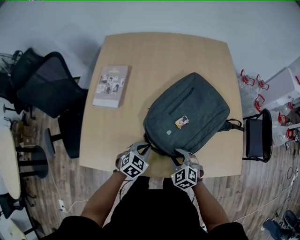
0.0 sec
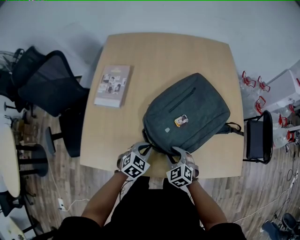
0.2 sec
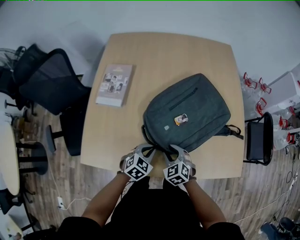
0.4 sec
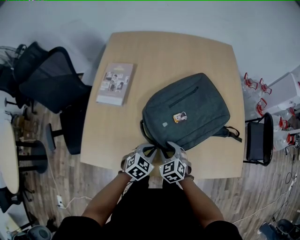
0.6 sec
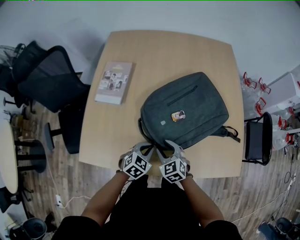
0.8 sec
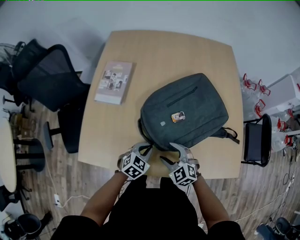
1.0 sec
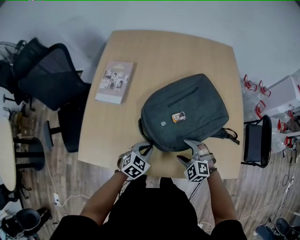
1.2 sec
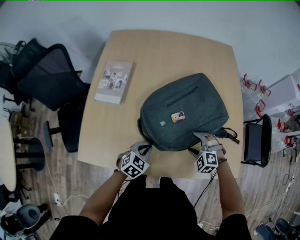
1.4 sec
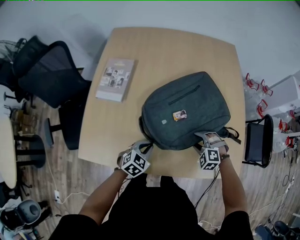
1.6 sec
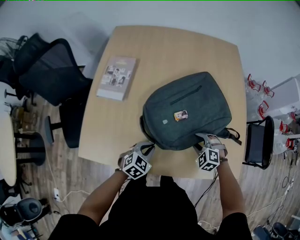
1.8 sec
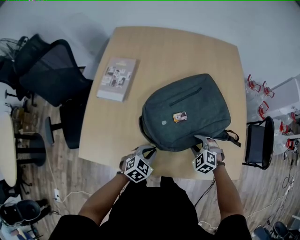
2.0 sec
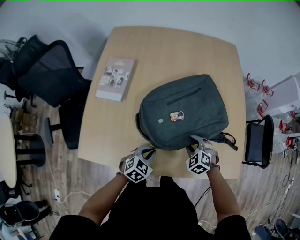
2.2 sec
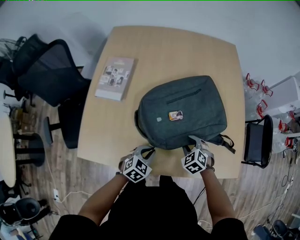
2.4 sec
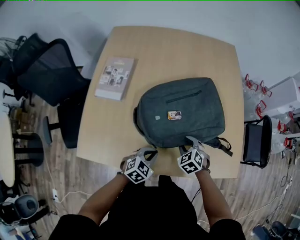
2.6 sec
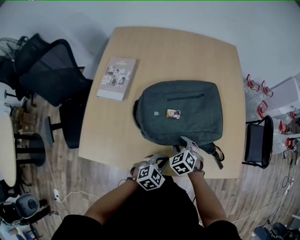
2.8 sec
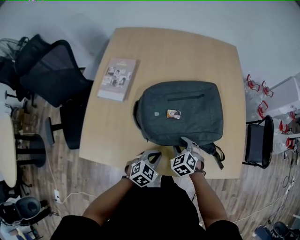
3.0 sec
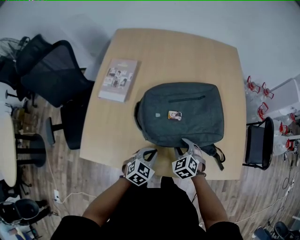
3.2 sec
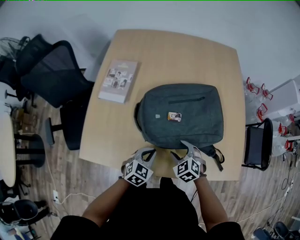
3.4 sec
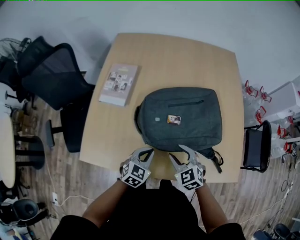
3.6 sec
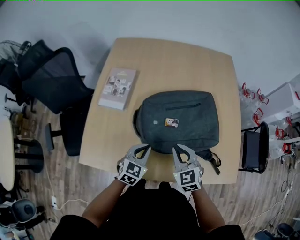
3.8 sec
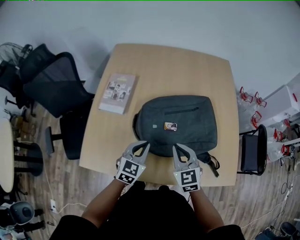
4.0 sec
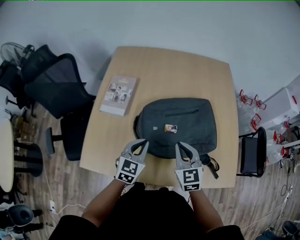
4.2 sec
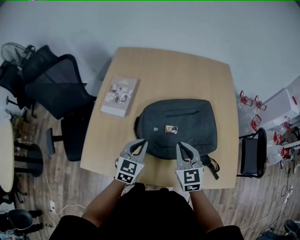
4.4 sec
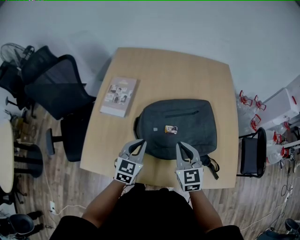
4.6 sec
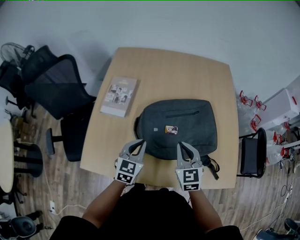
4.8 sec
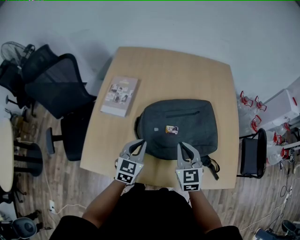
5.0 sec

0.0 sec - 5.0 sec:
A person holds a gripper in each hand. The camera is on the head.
0.0 sec - 1.6 sec: The right gripper shifts some 10 cm to the right and forward, rotates roughly 40 degrees, and opens, then closes once more.
1.6 sec - 3.4 sec: The left gripper reaches roughly 10 cm to the right, then returns, while the right gripper shifts about 10 cm to the left, and swivels some 30 degrees.
3.4 sec - 5.0 sec: The right gripper moves upward, about 15 cm, rotates about 40 degrees, and closes its fingers. The left gripper moves upward, forward and to the left, some 15 cm, and rotates some 20 degrees.

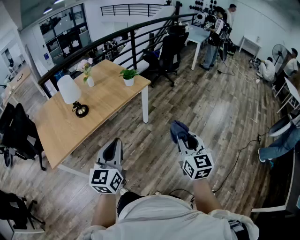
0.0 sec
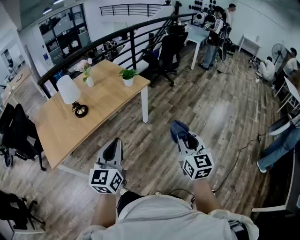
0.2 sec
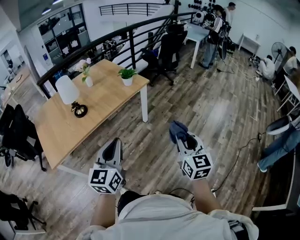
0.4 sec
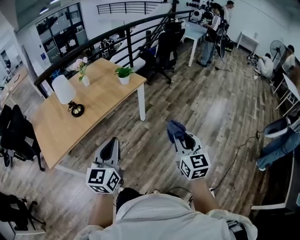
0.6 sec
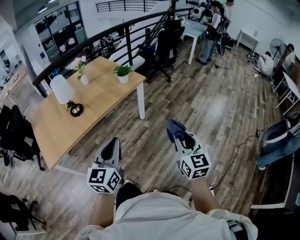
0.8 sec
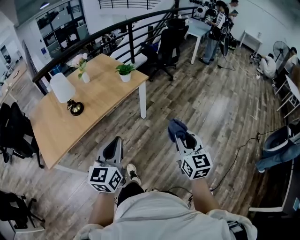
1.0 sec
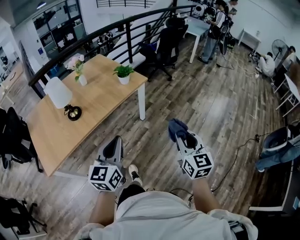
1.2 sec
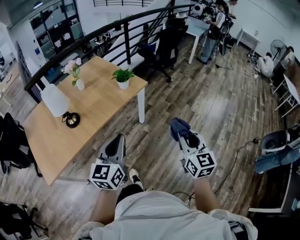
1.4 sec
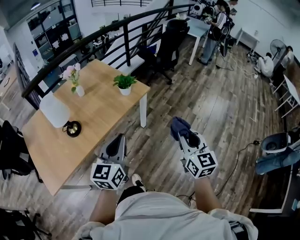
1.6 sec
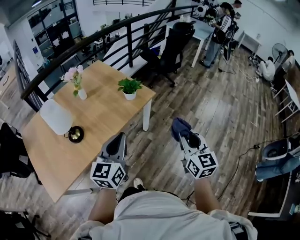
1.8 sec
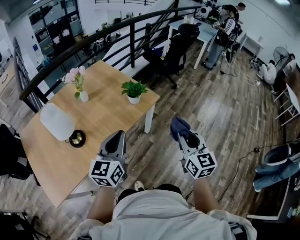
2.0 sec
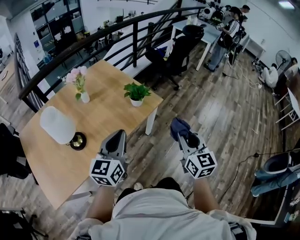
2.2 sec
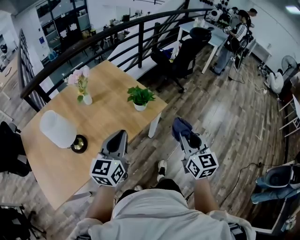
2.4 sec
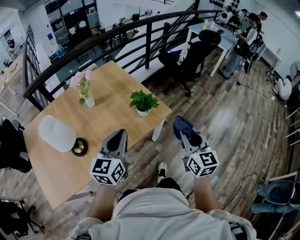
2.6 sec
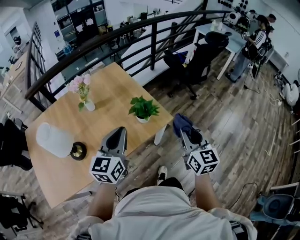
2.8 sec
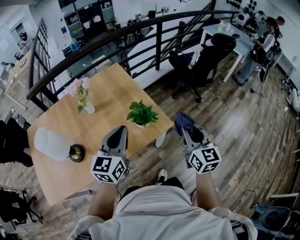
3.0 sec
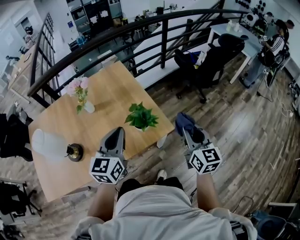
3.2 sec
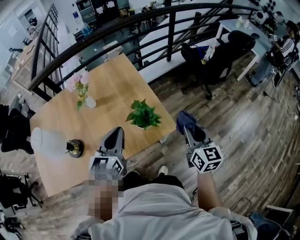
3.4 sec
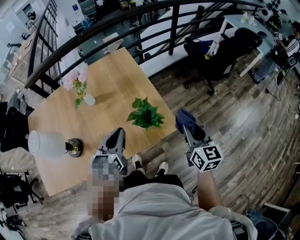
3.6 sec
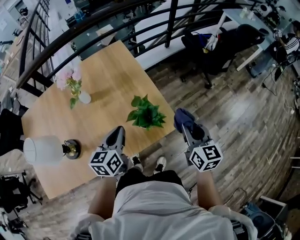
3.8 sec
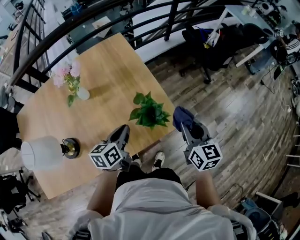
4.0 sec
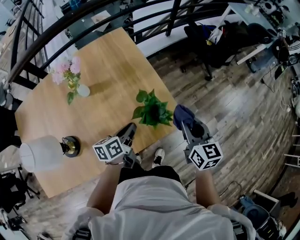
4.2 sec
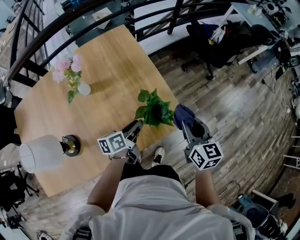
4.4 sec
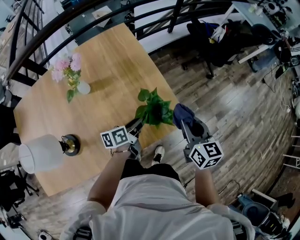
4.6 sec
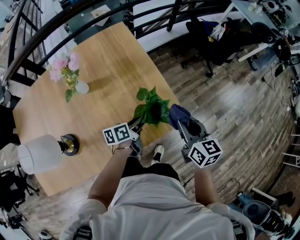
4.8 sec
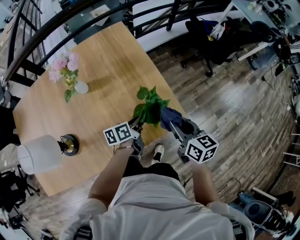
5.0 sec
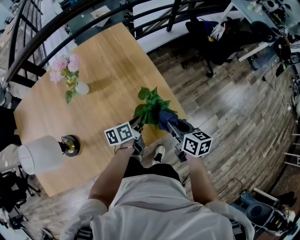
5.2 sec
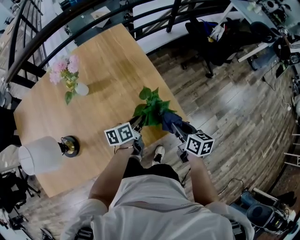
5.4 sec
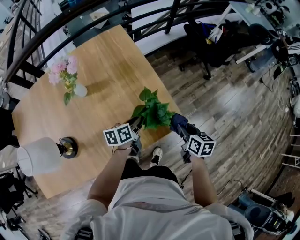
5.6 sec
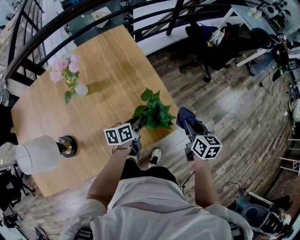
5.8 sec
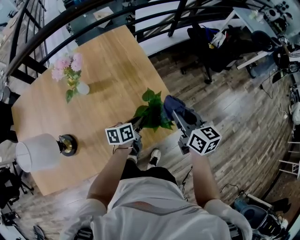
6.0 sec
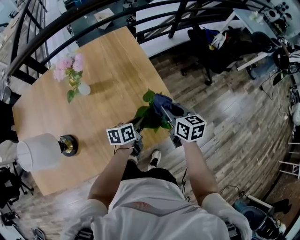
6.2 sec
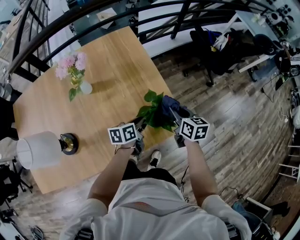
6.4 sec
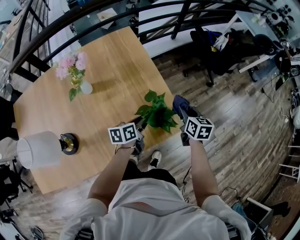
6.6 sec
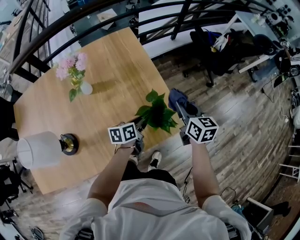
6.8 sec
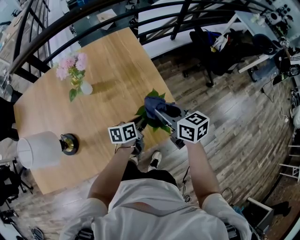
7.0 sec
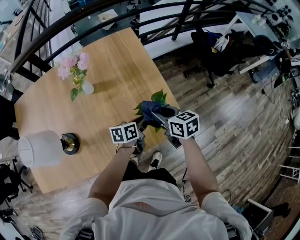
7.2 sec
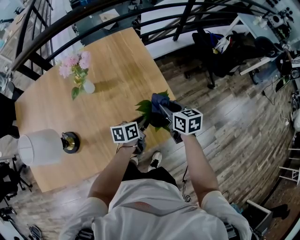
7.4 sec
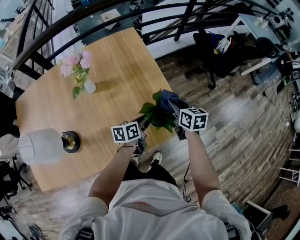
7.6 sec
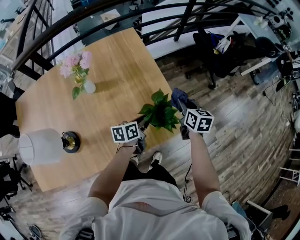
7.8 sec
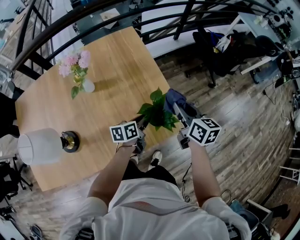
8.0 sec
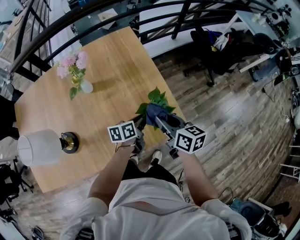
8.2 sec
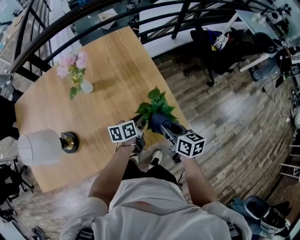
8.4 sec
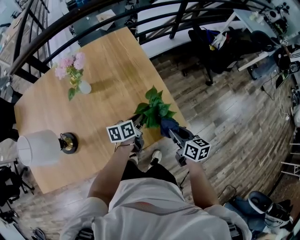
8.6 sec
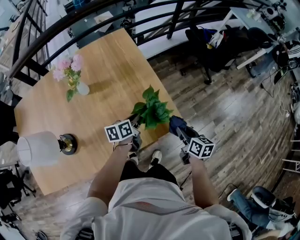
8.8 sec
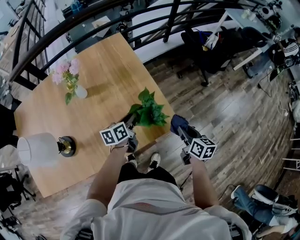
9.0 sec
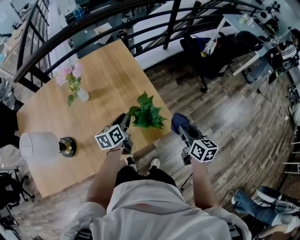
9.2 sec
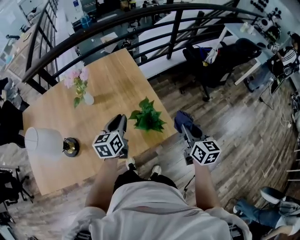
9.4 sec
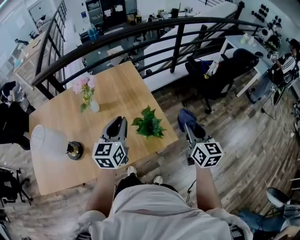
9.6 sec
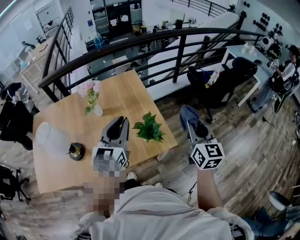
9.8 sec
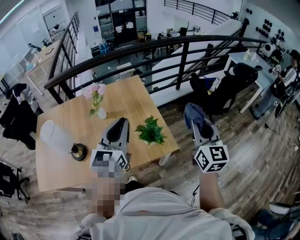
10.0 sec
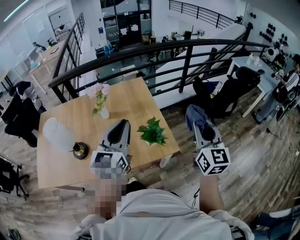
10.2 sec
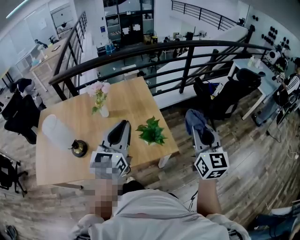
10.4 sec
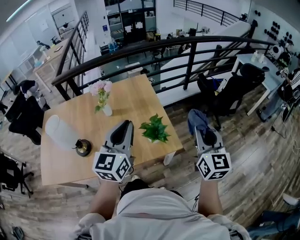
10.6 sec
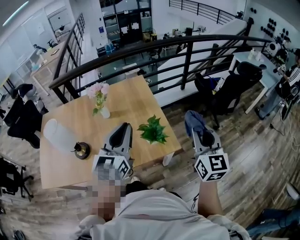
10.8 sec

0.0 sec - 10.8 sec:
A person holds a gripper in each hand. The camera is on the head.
0.0 sec - 1.6 sec: The grippers both shift forward by about 20 cm.
1.6 sec - 3.0 sec: Both grippers travel together forward, some 40 cm.
3.0 sec - 4.6 sec: The right gripper moves forward, downward and to the left, about 20 cm, while the left gripper travels downward and forward by approximately 30 cm, rotates around the line of its fingers by about 60 degrees, counterclockwise from behind, and opens up.
4.6 sec - 6.2 sec: The right gripper travels to the left, forward and downward by some 10 cm.
6.2 sec - 7.8 sec: The right gripper swings left and right, approximately 15 cm each way, with 2 reversals.
7.8 sec - 9.2 sec: The left gripper heads upward, covering approximately 5 cm. Meanwhile the right gripper moves backward and to the right, roughly 15 cm.
9.2 sec - 10.8 sec: The right gripper travels upward by about 25 cm, and changes its angle by roughly 40 degrees. Meanwhile the left gripper travels upward and backward by some 30 cm, and changes its angle by about 50 degrees.

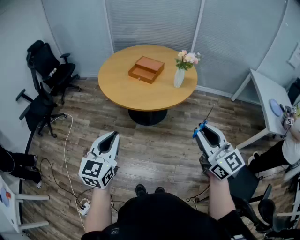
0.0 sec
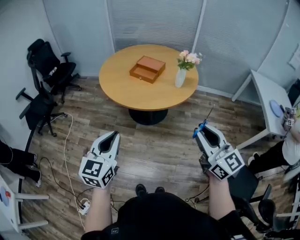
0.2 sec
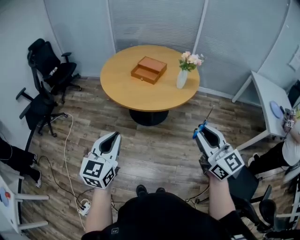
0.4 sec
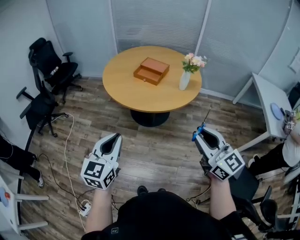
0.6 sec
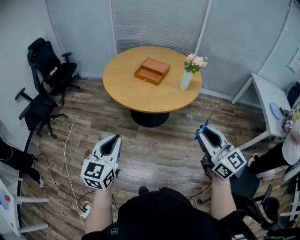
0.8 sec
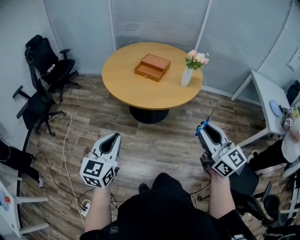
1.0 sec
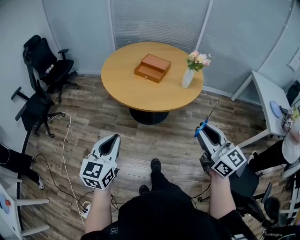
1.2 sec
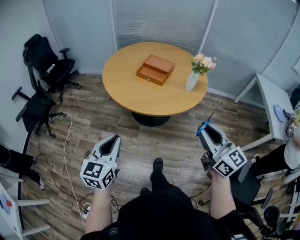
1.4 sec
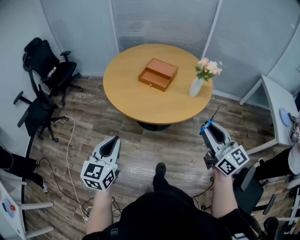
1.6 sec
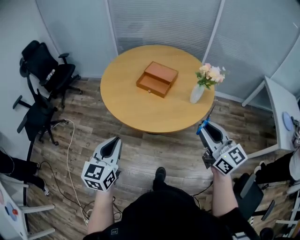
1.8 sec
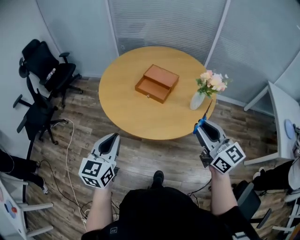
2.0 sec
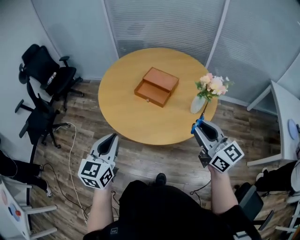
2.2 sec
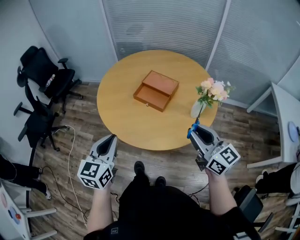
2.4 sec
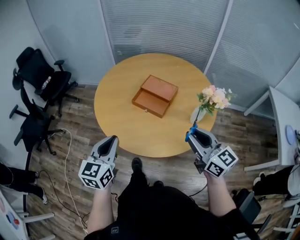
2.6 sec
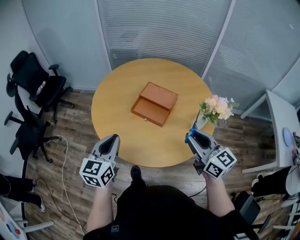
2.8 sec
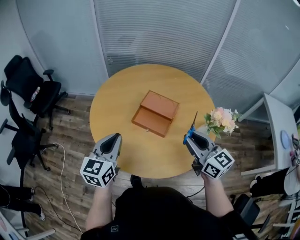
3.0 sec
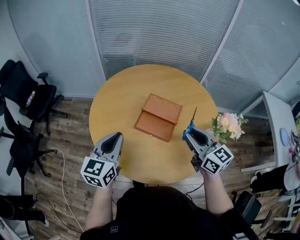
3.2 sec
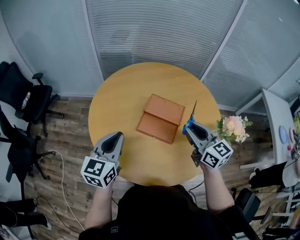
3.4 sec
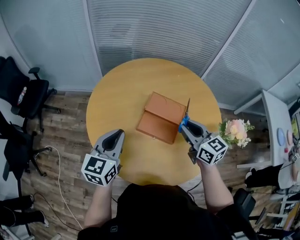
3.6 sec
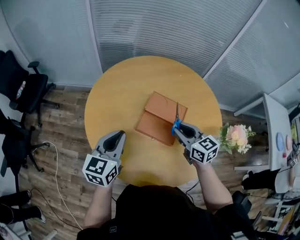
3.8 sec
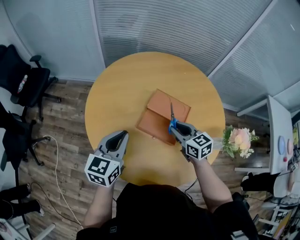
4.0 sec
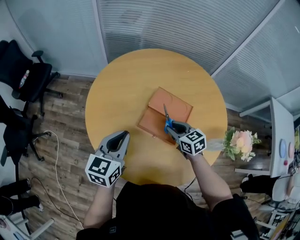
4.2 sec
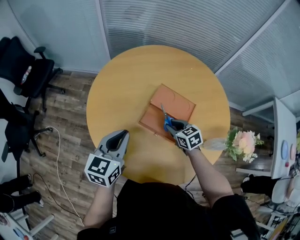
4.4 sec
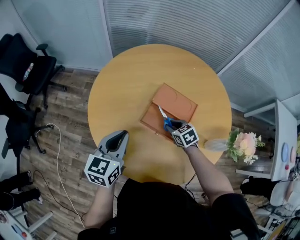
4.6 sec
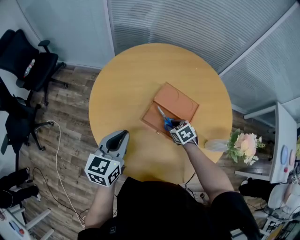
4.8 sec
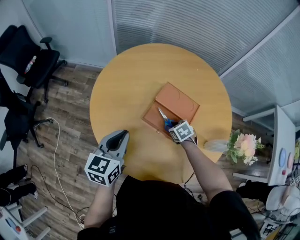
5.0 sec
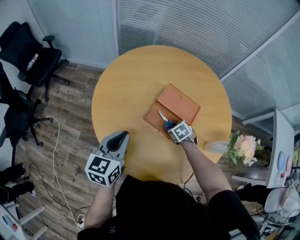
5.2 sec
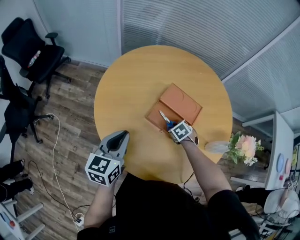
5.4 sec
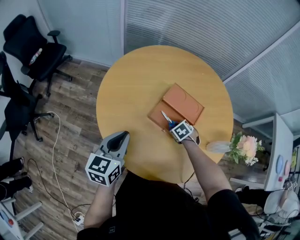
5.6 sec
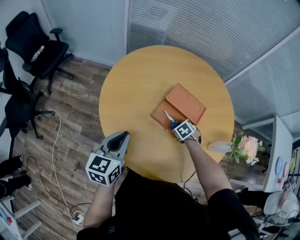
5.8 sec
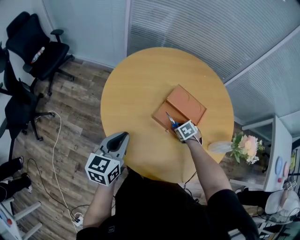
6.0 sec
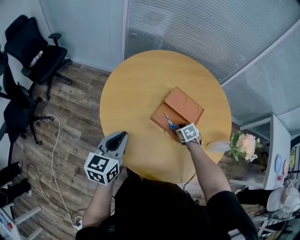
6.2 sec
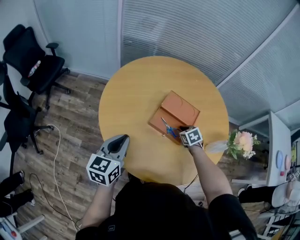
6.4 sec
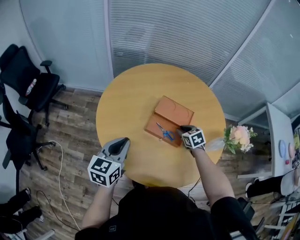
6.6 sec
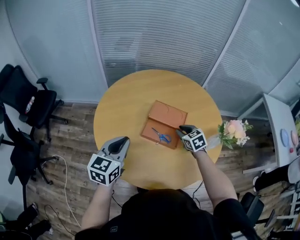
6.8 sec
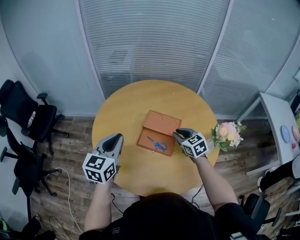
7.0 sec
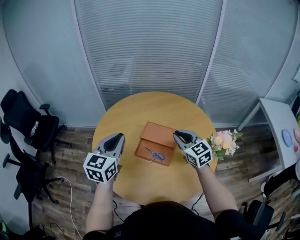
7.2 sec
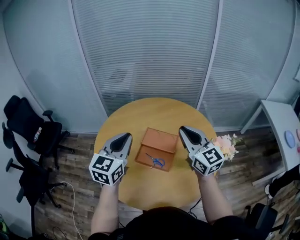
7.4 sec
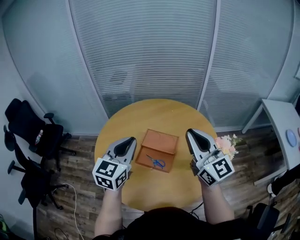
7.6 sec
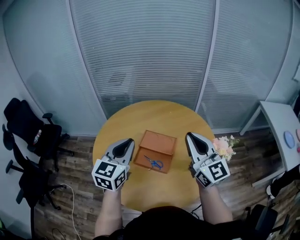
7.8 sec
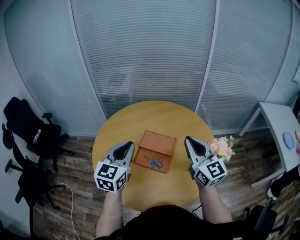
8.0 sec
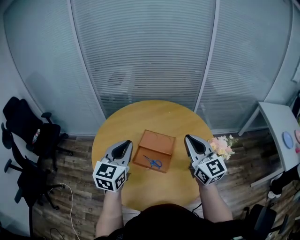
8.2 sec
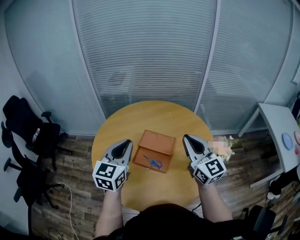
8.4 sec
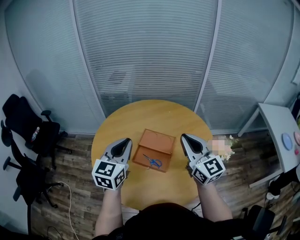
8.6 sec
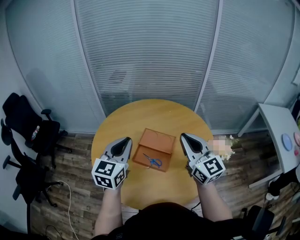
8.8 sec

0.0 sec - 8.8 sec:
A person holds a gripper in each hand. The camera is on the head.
0.0 sec - 1.4 sec: Both grippers travel together forward and to the left, some 10 cm.
1.4 sec - 3.0 sec: The pair of grippers is taken forward, roughly 40 cm.
3.0 sec - 4.4 sec: The right gripper shifts roughly 35 cm downward and forward, and angles its fingers downward, by roughly 40 degrees. Meanwhile the left gripper goes some 15 cm forward and downward.
4.4 sec - 5.8 sec: The left gripper changes place by roughly 10 cm, while the right gripper shifts roughly 10 cm downward, and angles its fingers downward, by approximately 40 degrees.
5.8 sec - 7.4 sec: The right gripper heads upward, covering roughly 40 cm, and points its fingers some 80 degrees further upward. The left gripper shifts about 20 cm upward, and changes its angle by roughly 30 degrees.
